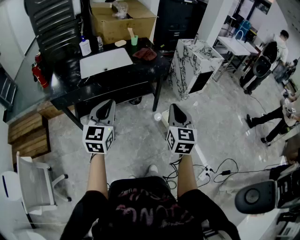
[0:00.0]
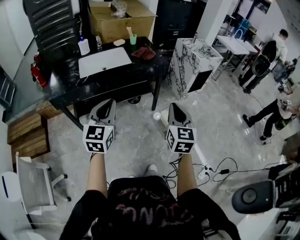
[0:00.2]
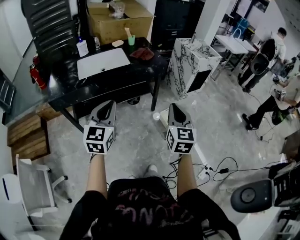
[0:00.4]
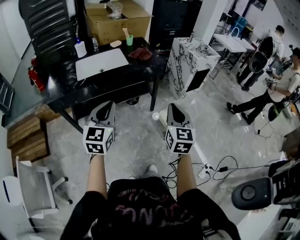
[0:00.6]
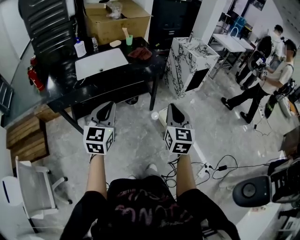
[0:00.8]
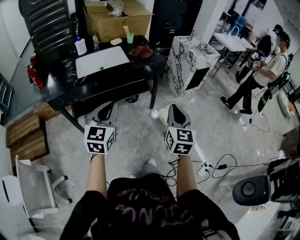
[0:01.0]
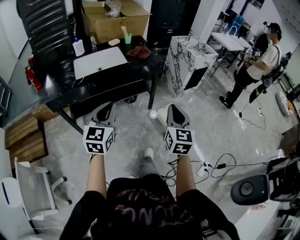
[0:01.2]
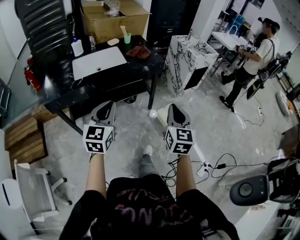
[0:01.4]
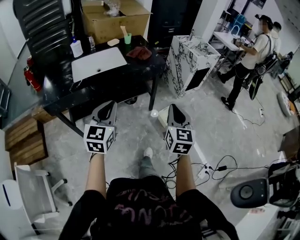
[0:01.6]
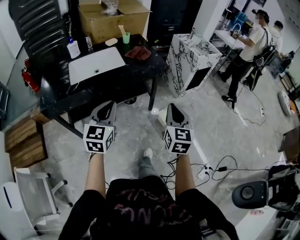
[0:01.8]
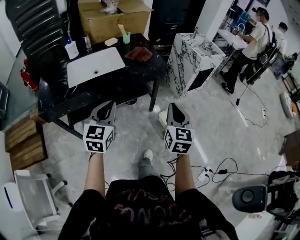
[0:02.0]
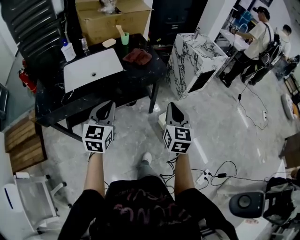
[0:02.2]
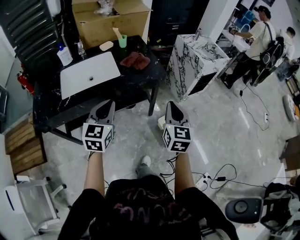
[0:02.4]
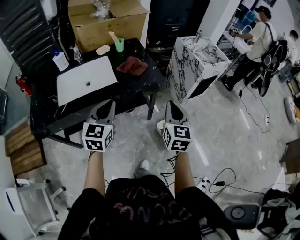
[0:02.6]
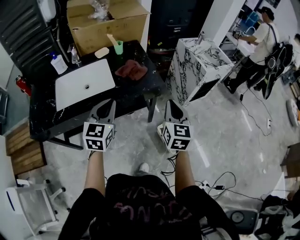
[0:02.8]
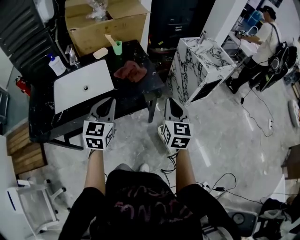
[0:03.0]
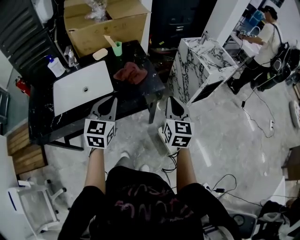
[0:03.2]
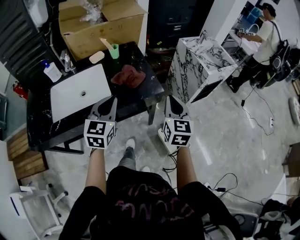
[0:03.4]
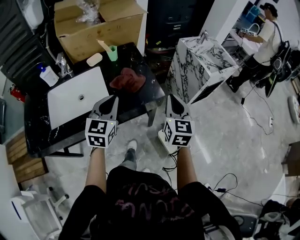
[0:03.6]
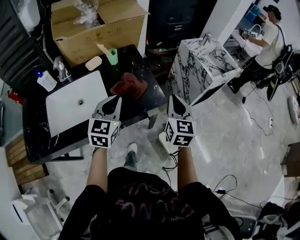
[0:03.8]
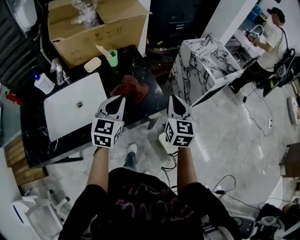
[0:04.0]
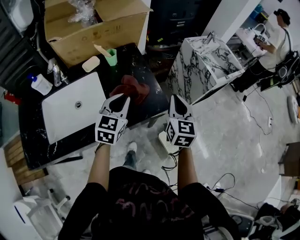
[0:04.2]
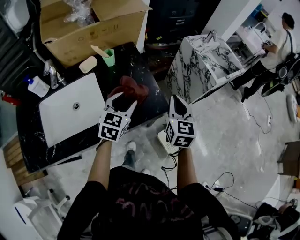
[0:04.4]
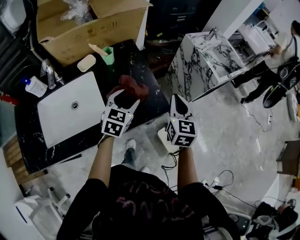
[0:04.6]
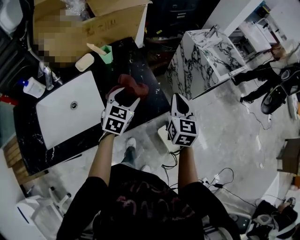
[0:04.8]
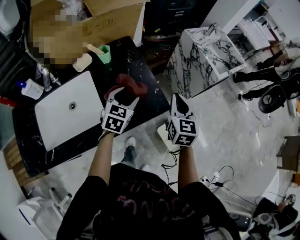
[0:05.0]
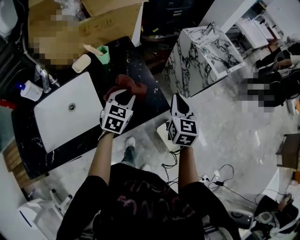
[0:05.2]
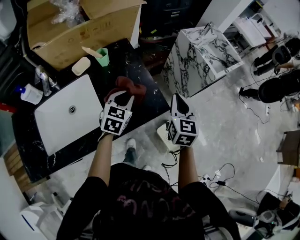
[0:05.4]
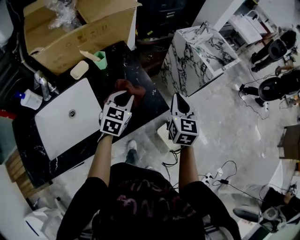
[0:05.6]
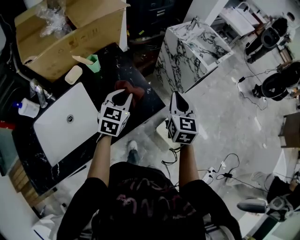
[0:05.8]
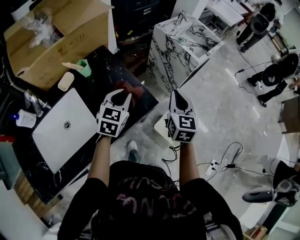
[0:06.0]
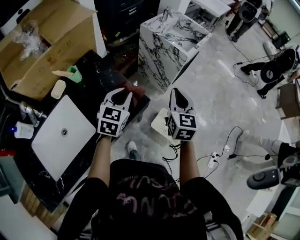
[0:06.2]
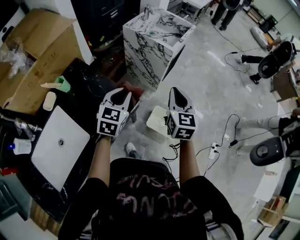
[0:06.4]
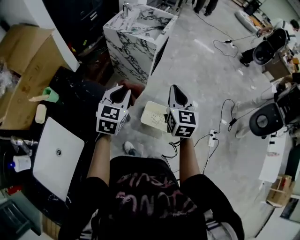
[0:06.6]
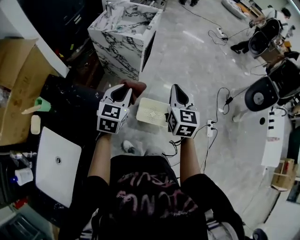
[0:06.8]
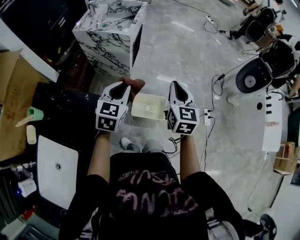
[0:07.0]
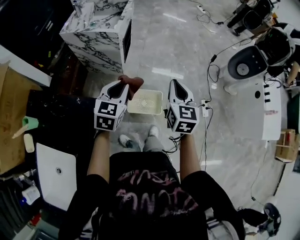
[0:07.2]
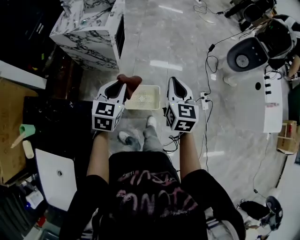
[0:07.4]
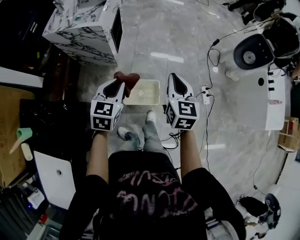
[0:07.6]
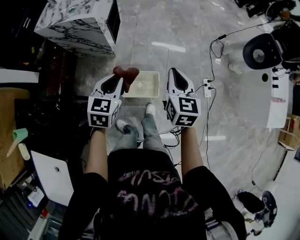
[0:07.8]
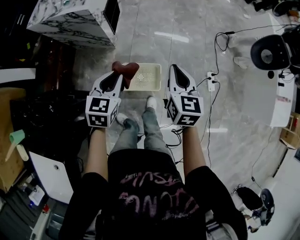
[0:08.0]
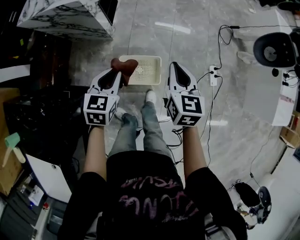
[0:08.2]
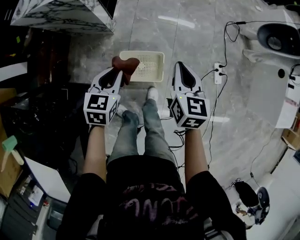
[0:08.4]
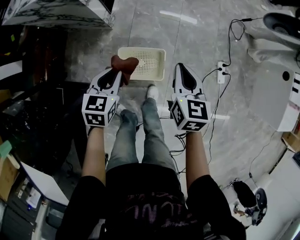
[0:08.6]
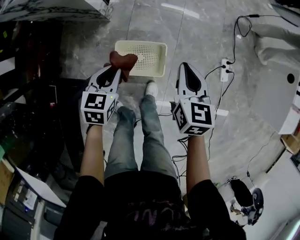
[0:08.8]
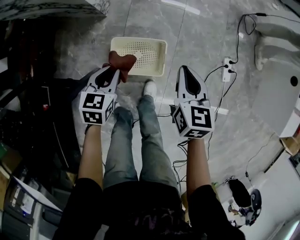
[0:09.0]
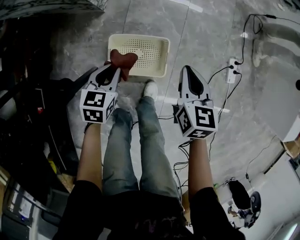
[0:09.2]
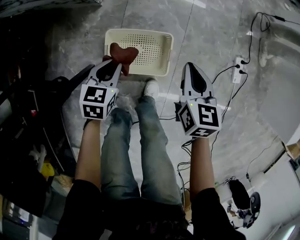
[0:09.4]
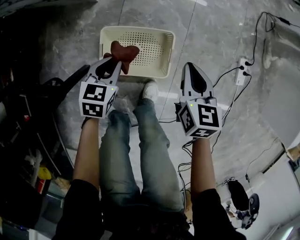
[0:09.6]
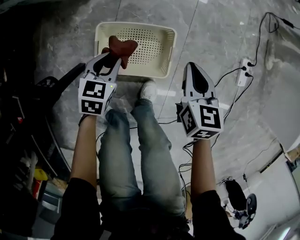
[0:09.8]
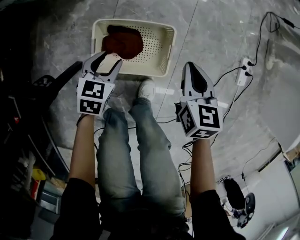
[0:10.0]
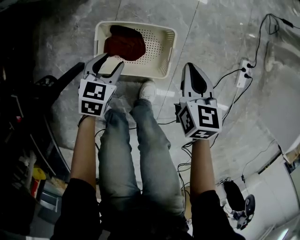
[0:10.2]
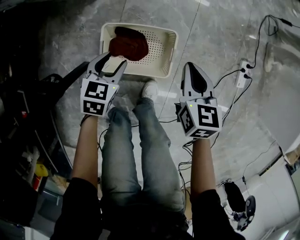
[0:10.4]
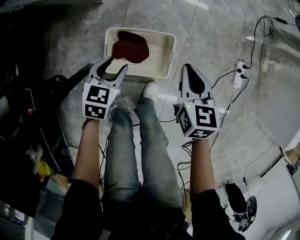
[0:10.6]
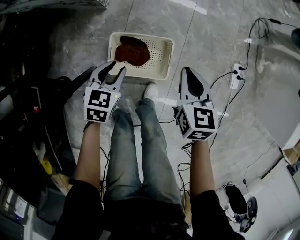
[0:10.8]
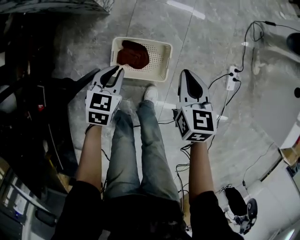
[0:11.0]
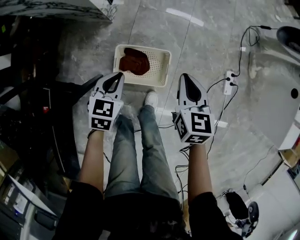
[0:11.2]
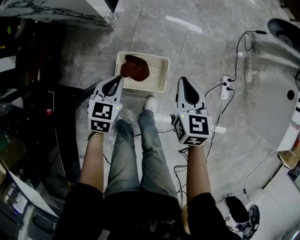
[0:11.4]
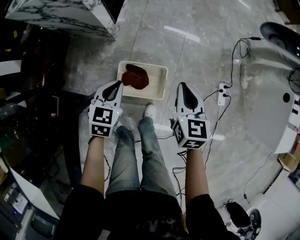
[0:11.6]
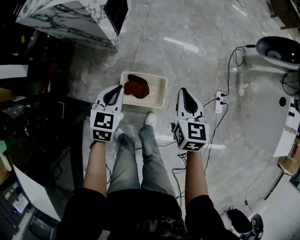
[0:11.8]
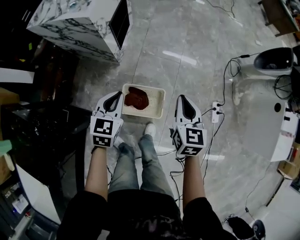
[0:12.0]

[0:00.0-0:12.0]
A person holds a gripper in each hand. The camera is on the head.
0.0 to 1.6 s: The right gripper ends up about 5 cm from where it was, while the left gripper heads forward, covering some 5 cm.
1.6 to 3.0 s: The two grippers go some 35 cm forward.
3.0 to 4.4 s: The right gripper heads forward, covering some 20 cm. The left gripper shifts some 25 cm forward and downward, and opens.
4.4 to 6.0 s: The left gripper moves forward, some 5 cm, and closes up, while the right gripper moves to the right, about 5 cm.
6.0 to 7.6 s: The left gripper shifts by roughly 35 cm, and changes its angle by about 40 degrees. The right gripper moves some 35 cm, and turns by roughly 40 degrees.
7.6 to 9.0 s: The grippers both shift downward by roughly 35 cm.
9.0 to 10.4 s: The grippers both shift downward by roughly 20 cm. The left gripper opens its fingers.
10.4 to 12.0 s: Both grippers move upward, about 40 cm. The left gripper turns by some 20 degrees, and closes.

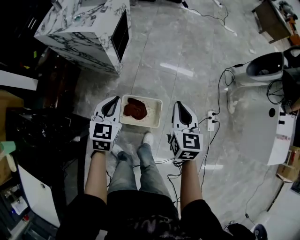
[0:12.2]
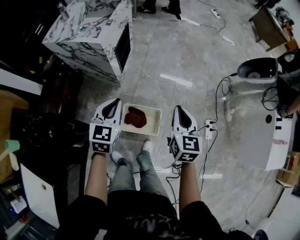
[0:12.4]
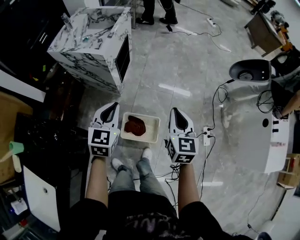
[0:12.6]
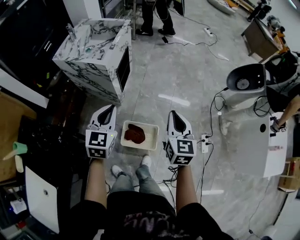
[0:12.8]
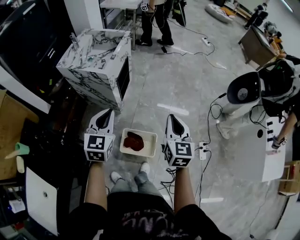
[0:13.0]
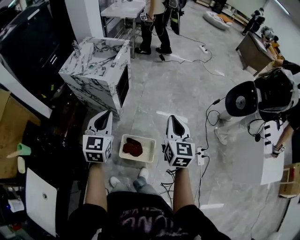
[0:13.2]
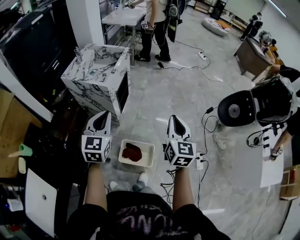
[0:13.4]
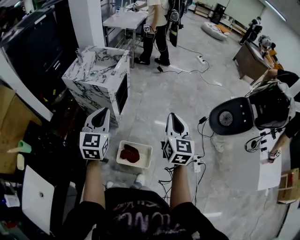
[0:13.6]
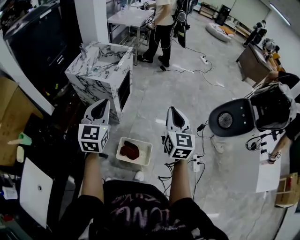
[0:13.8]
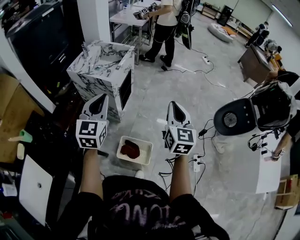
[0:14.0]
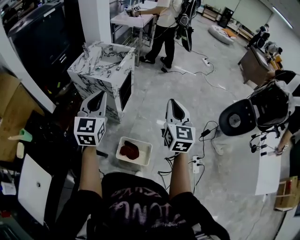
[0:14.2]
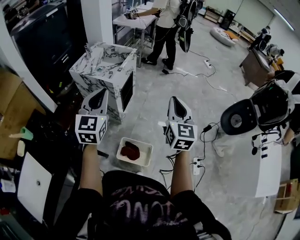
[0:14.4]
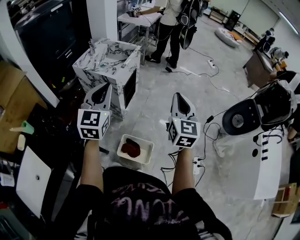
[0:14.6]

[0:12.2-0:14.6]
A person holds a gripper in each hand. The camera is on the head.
12.2 to 13.4 s: Both grippers travel together upward, roughly 25 cm. The left gripper turns by roughly 20 degrees.
13.4 to 14.6 s: Both grippers travel together upward, about 10 cm.

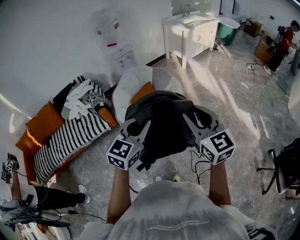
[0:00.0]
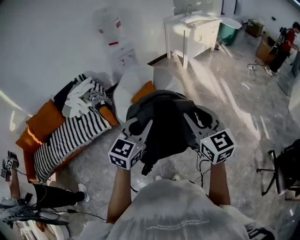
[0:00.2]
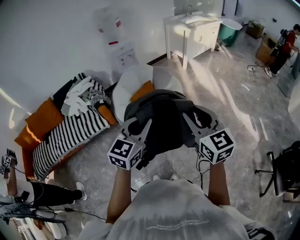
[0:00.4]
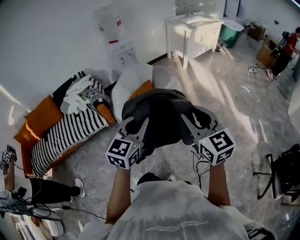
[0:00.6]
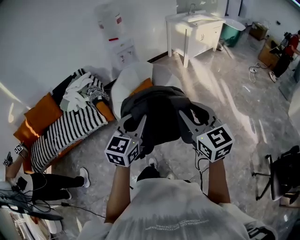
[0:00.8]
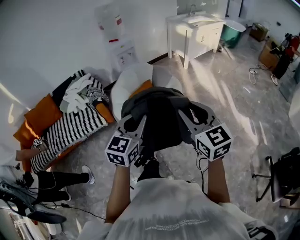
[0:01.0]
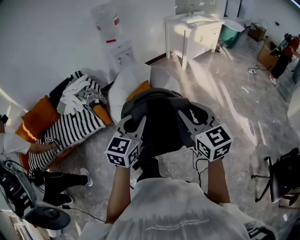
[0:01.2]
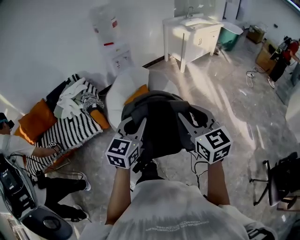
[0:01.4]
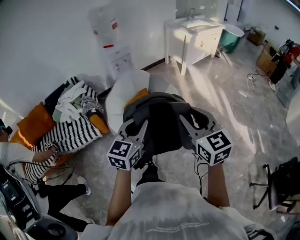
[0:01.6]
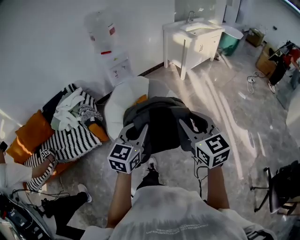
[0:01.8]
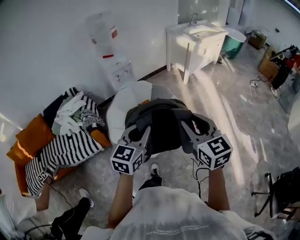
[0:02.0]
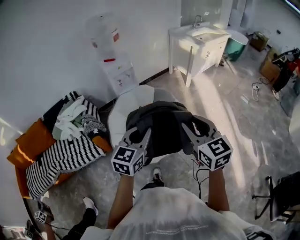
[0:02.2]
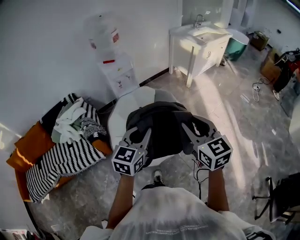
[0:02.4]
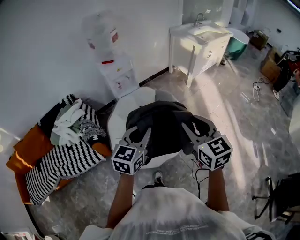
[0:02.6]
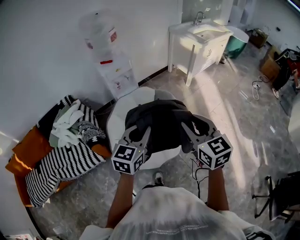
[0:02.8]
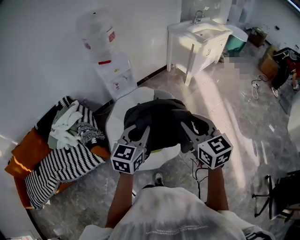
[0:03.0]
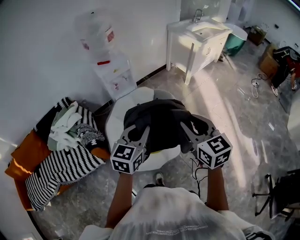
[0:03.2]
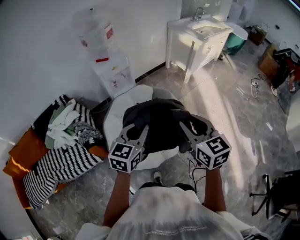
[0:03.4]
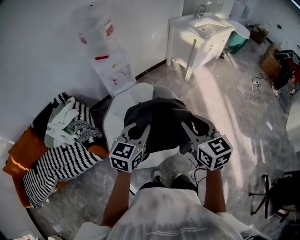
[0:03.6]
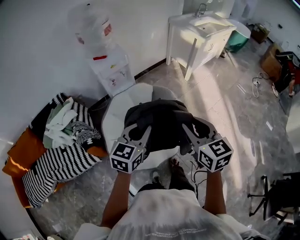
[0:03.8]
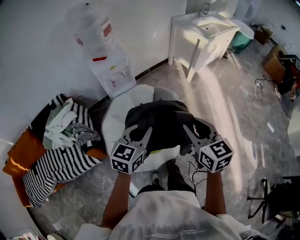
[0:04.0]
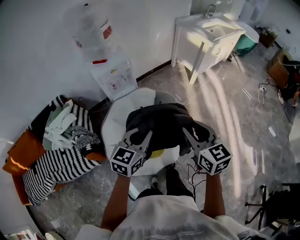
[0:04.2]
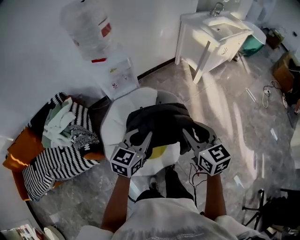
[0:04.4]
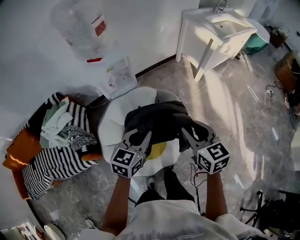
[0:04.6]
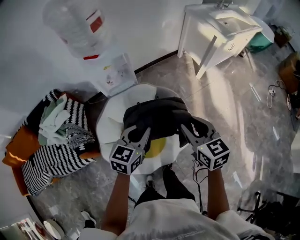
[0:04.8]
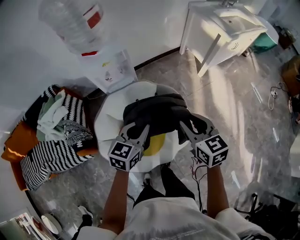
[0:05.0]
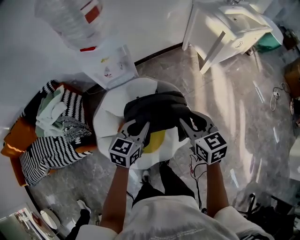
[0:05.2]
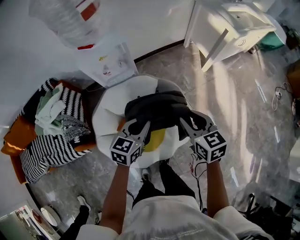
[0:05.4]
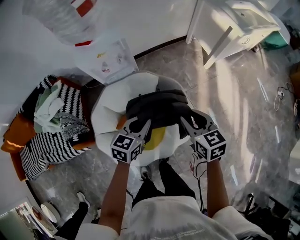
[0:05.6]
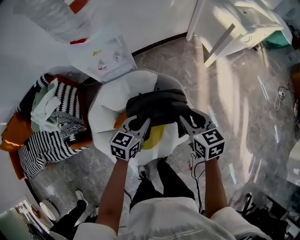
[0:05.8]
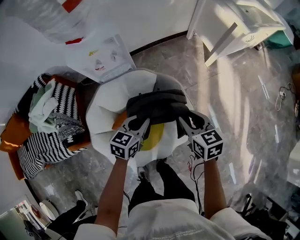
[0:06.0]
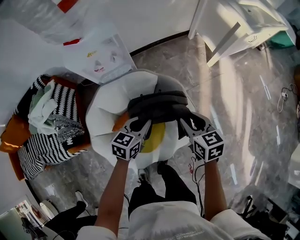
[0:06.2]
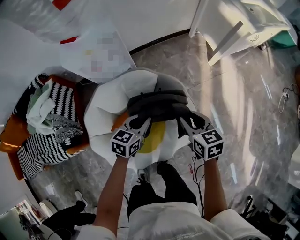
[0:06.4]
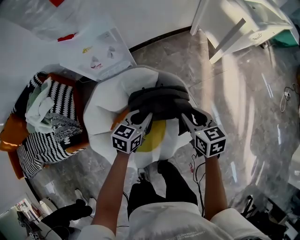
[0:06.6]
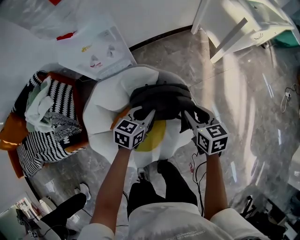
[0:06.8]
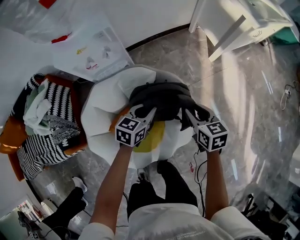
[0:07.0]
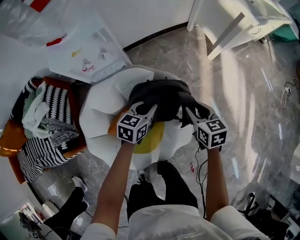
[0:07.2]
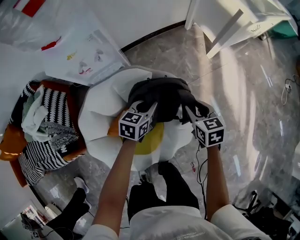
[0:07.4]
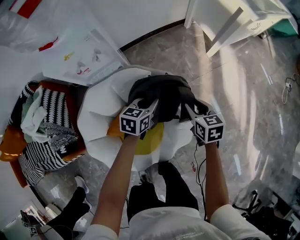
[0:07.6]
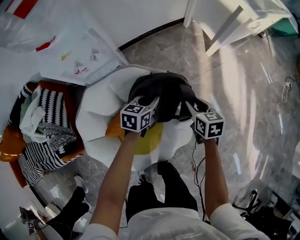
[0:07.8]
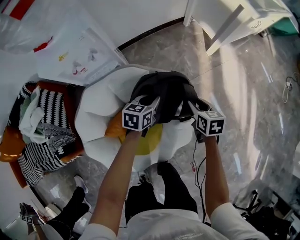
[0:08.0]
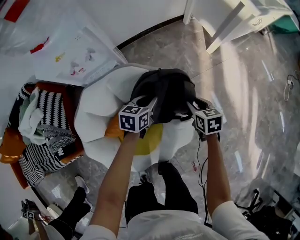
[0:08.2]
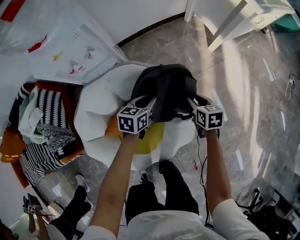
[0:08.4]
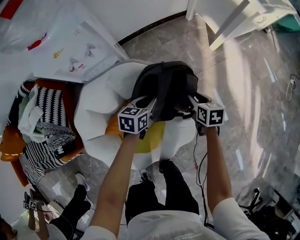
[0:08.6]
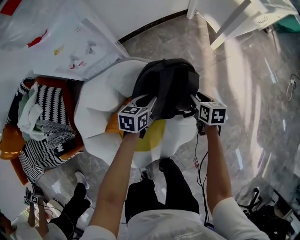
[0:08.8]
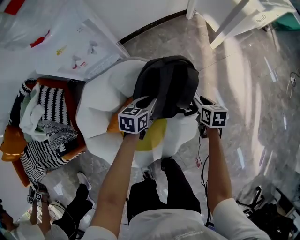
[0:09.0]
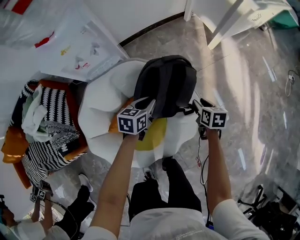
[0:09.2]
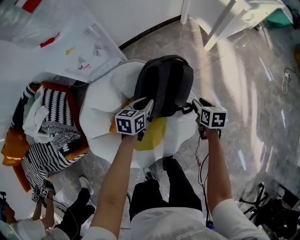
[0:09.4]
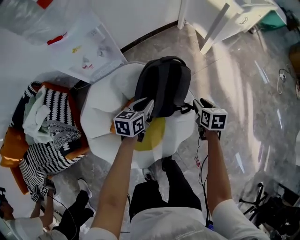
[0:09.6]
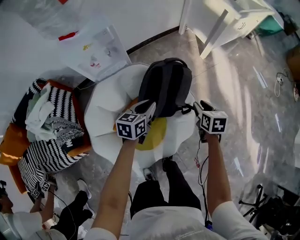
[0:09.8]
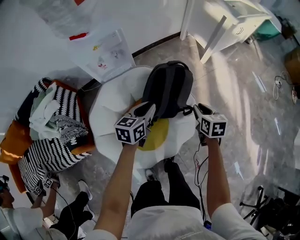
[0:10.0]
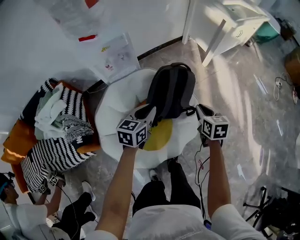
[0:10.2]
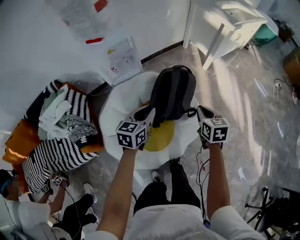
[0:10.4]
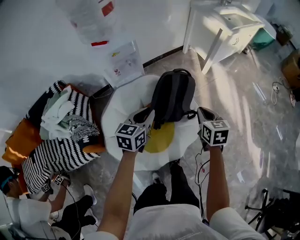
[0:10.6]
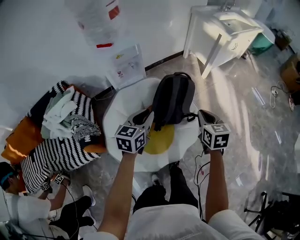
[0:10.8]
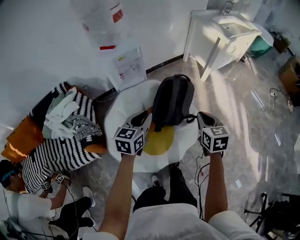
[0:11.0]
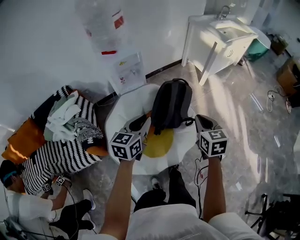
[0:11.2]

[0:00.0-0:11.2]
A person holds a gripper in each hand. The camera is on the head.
0.0 to 1.6 s: The grippers both shift forward by some 15 cm.
1.6 to 3.2 s: Both grippers move forward, about 30 cm.
3.2 to 4.8 s: Both grippers move forward and downward, roughly 25 cm.
4.8 to 6.4 s: The two grippers go roughly 25 cm downward and forward.
6.4 to 8.0 s: The left gripper heads downward, forward and to the right, covering some 15 cm; the right gripper is displaced downward, to the right and forward by about 20 cm.
8.0 to 9.6 s: The left gripper is displaced backward and upward by roughly 10 cm. The right gripper travels backward by approximately 5 cm, and moves some 5 cm downward and comes back.
9.6 to 11.2 s: The grippers both shift upward and backward by approximately 35 cm. The left gripper rotates approximately 20 degrees. Meanwhile the right gripper changes its angle by roughly 30 degrees, and closes up.
